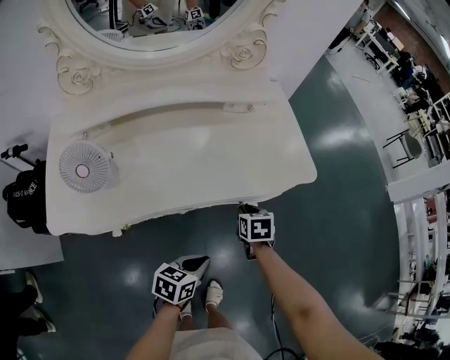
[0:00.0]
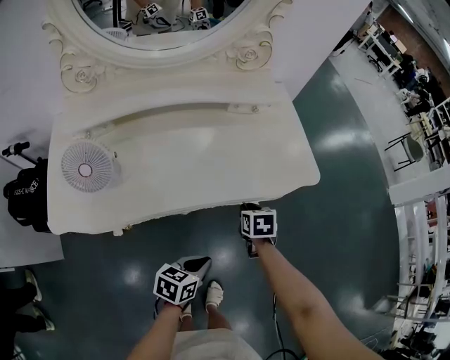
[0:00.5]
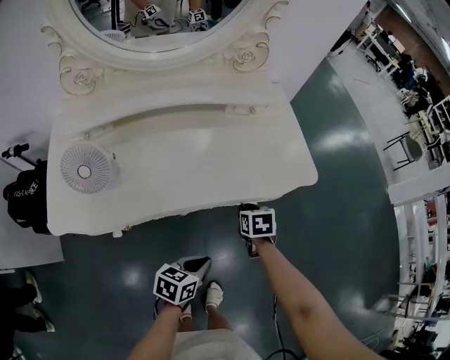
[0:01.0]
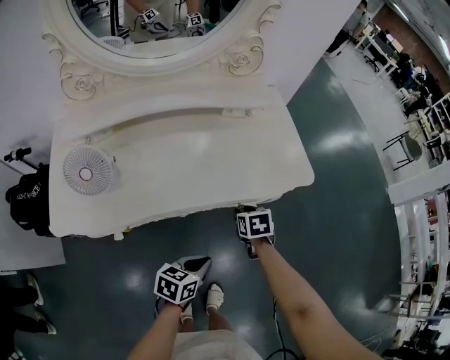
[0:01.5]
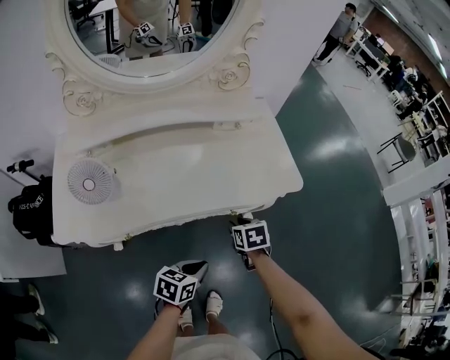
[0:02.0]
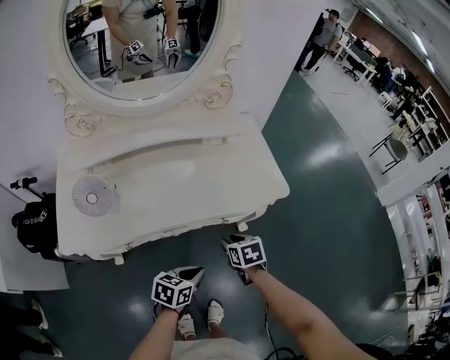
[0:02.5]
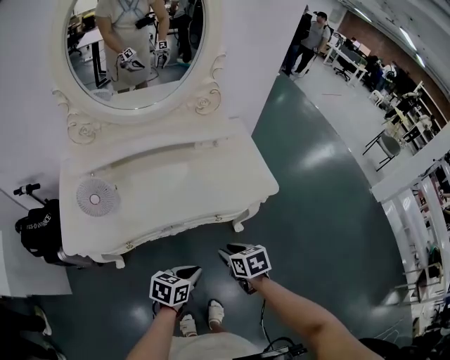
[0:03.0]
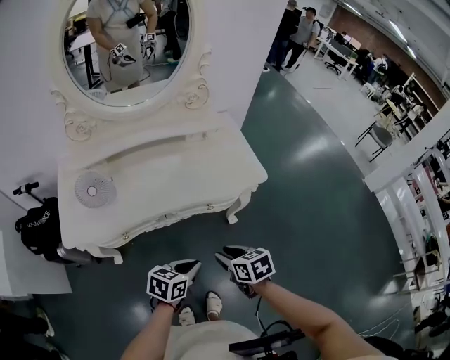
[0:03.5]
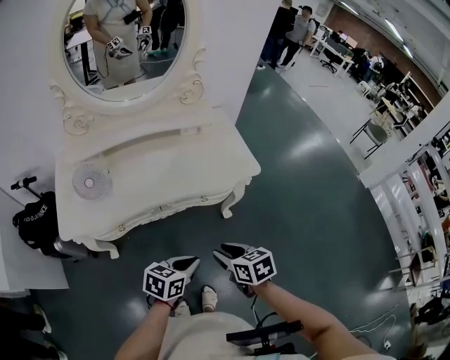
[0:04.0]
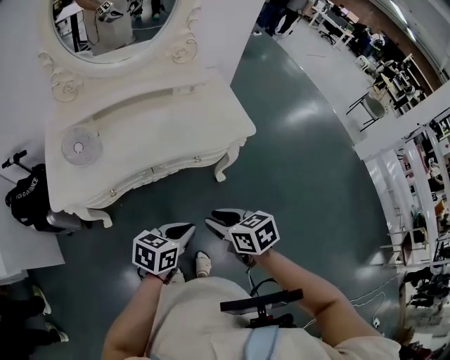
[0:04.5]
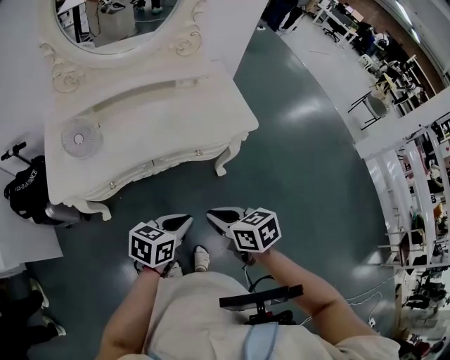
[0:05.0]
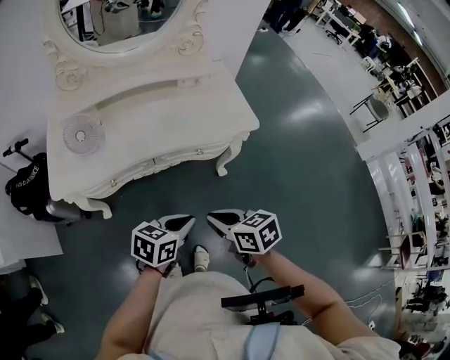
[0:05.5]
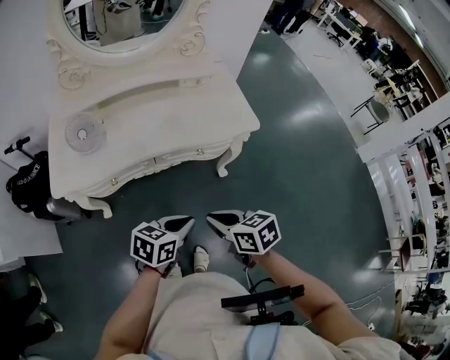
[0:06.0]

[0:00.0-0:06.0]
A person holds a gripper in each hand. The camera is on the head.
0:00.0 to 0:02.0: The grippers move only a little.
0:02.0 to 0:04.0: The right gripper heads backward and upward, covering some 25 cm, while the left gripper moves upward and backward, about 15 cm.
0:04.0 to 0:06.0: The right gripper shifts by some 5 cm, and closes its fingers.

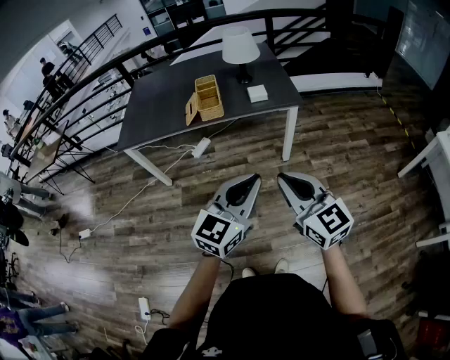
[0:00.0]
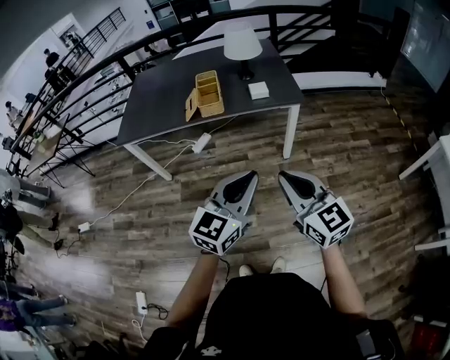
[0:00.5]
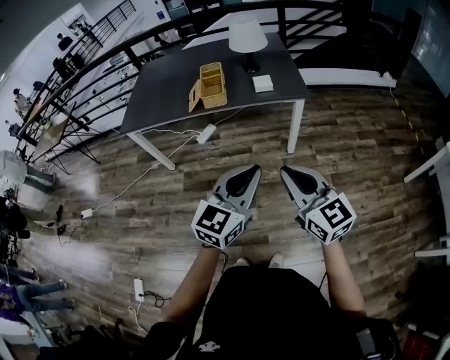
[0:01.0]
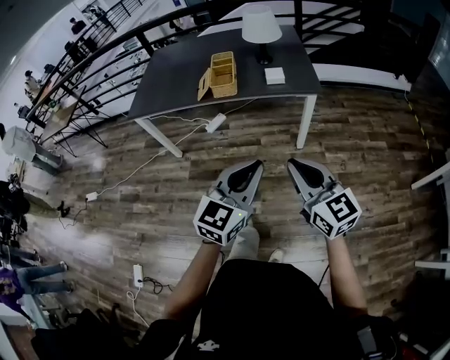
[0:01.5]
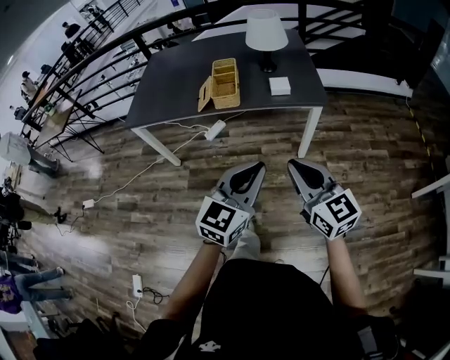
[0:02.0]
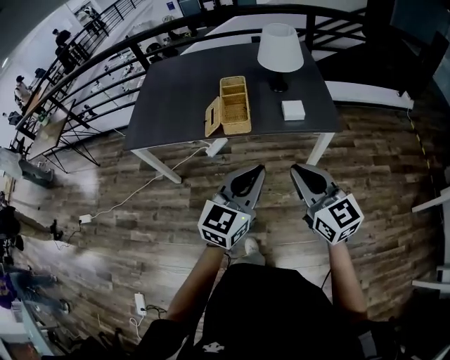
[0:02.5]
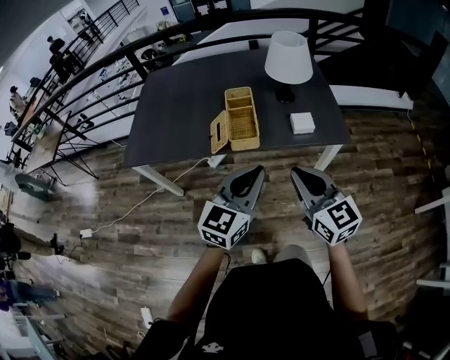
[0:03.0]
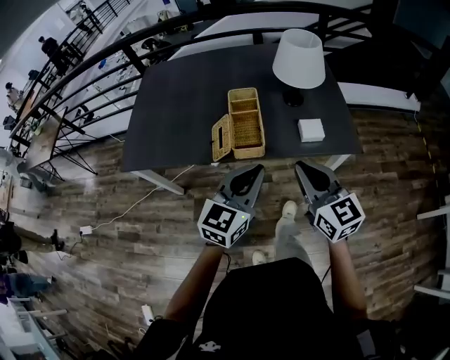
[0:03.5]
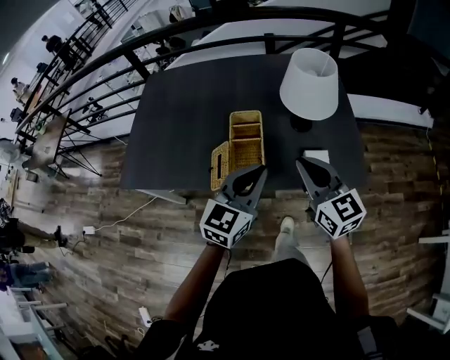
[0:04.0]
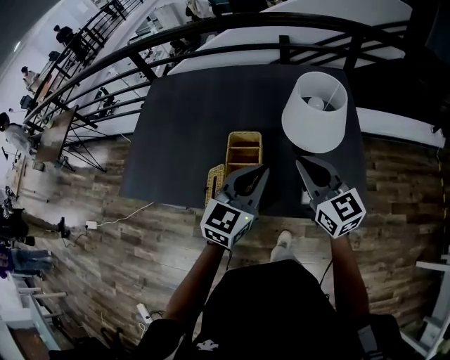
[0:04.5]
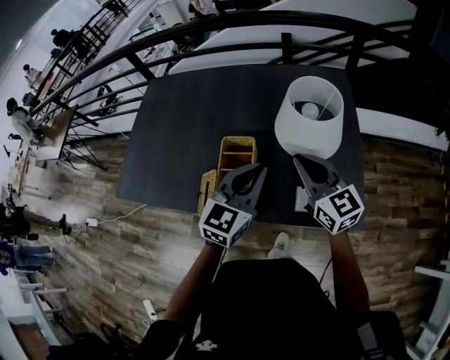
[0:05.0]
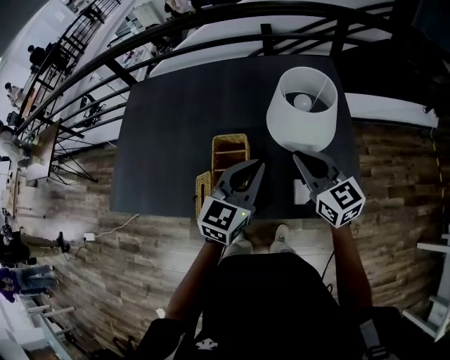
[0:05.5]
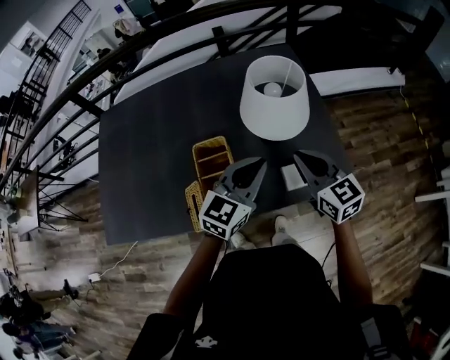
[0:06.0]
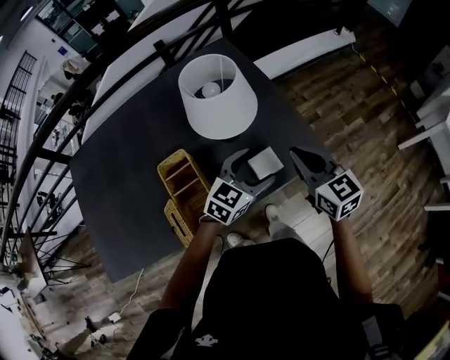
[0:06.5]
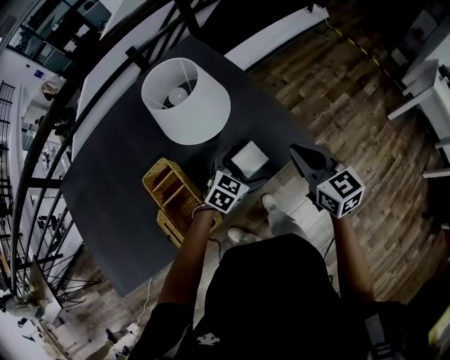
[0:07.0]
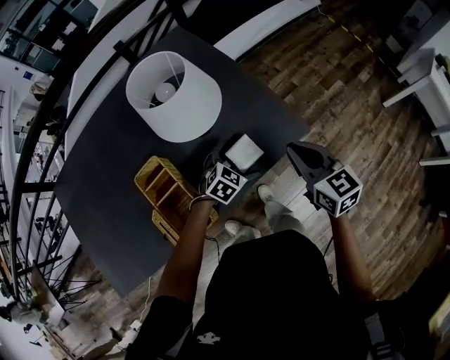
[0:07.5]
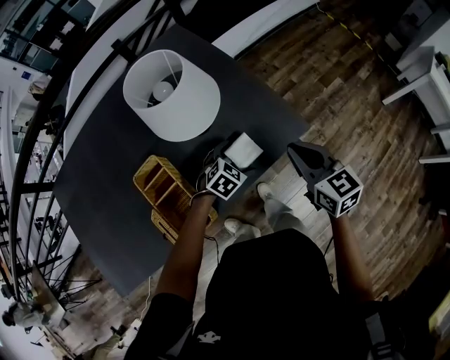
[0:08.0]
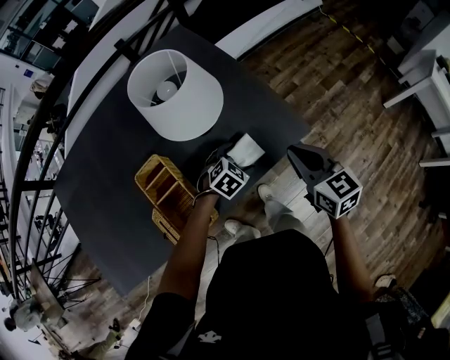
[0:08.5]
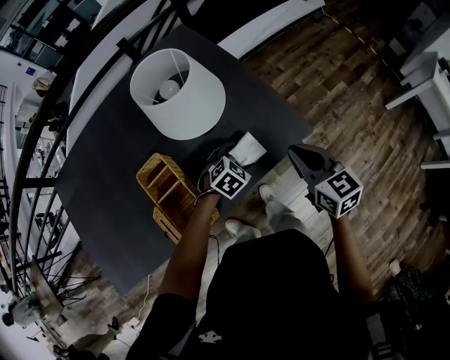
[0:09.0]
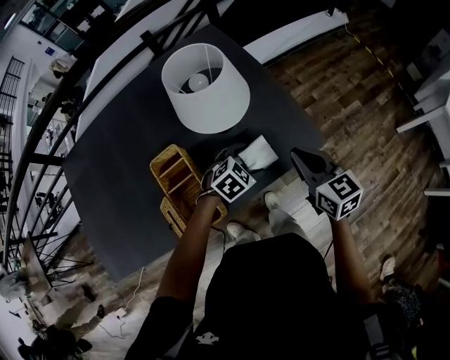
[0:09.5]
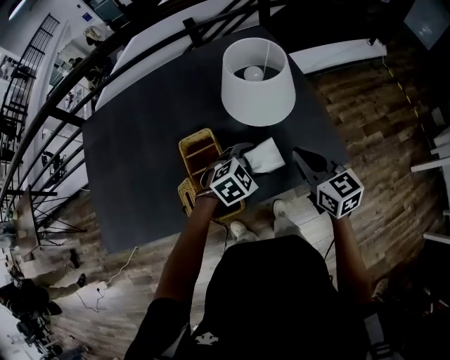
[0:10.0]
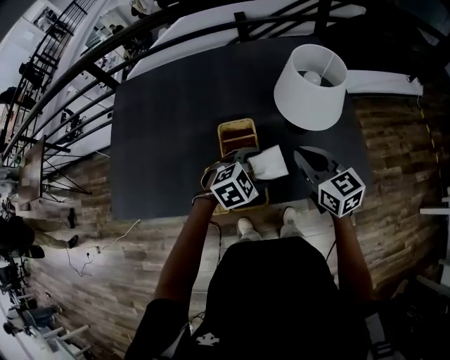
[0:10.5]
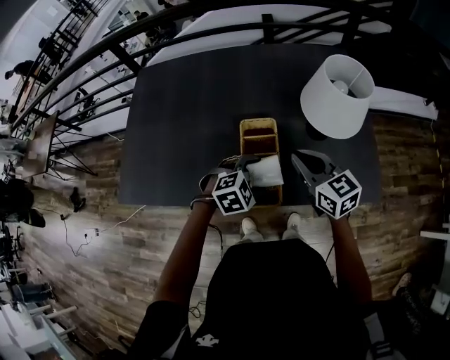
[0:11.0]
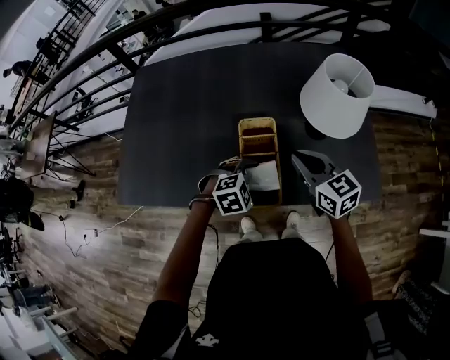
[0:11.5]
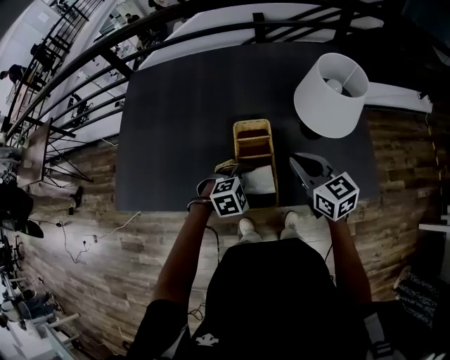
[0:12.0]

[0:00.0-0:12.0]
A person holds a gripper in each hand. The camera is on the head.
0:00.0 to 0:02.0: Both grippers move forward, some 10 cm.
0:02.0 to 0:04.0: The pair of grippers is taken forward, about 40 cm.
0:04.0 to 0:06.0: The two grippers go roughly 15 cm forward and to the right.
0:06.0 to 0:08.0: The left gripper moves downward, some 25 cm, angles its fingers downward, by approximately 40 degrees, and opens up, while the right gripper changes place by about 20 cm, and turns by roughly 30 degrees.
0:08.0 to 0:10.0: The right gripper travels to the left by roughly 10 cm, while the left gripper shifts approximately 15 cm upward and to the left.
0:10.0 to 0:12.0: The left gripper moves to the left and backward, roughly 20 cm. Meanwhile the right gripper shifts roughly 15 cm to the left.

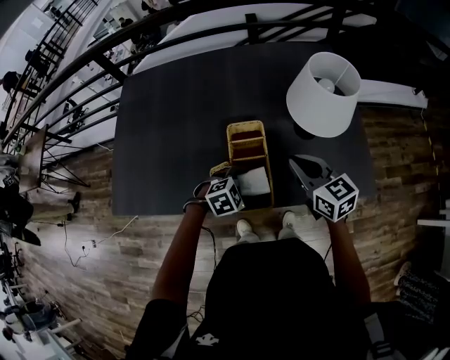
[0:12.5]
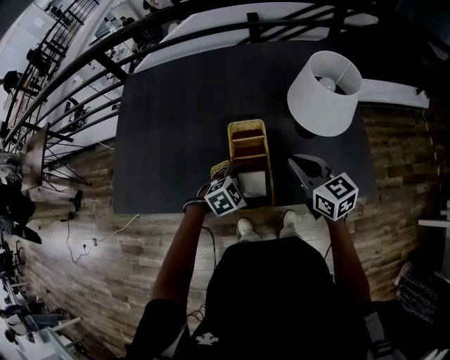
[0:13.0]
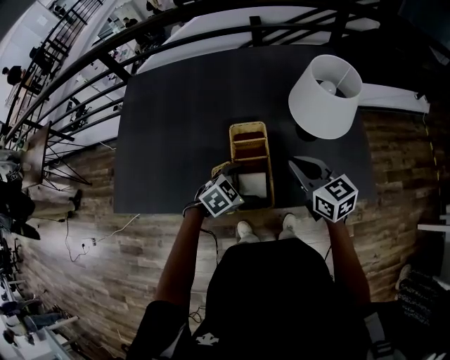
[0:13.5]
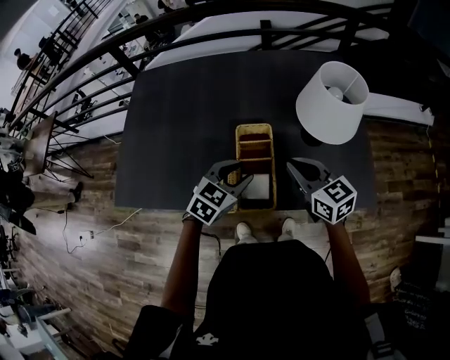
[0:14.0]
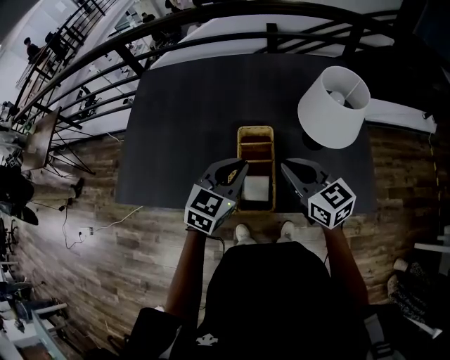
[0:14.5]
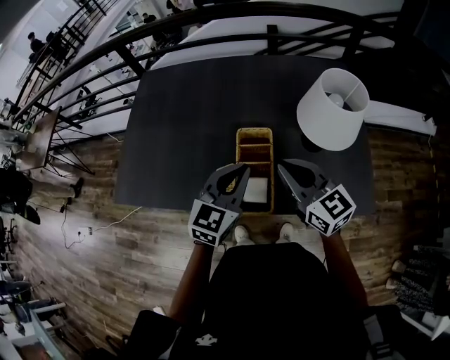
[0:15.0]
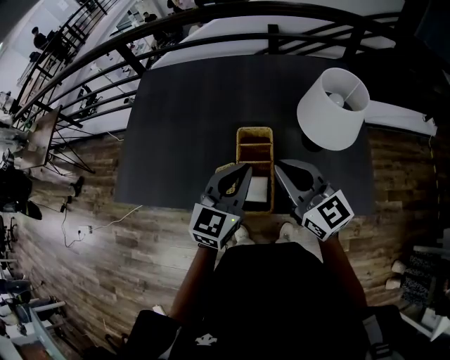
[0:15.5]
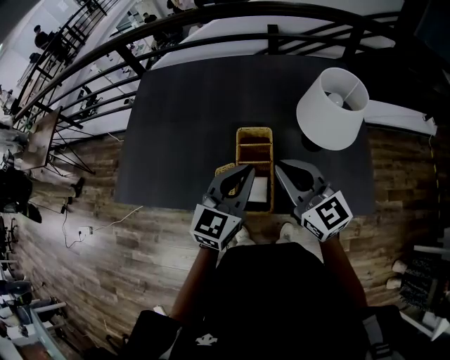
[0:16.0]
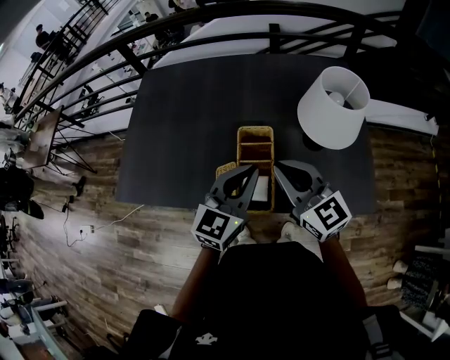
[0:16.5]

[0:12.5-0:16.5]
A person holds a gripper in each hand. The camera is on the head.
0:12.5 to 0:14.5: The left gripper heads upward, covering about 20 cm, points its fingers roughly 40 degrees further upward, and closes its fingers. The right gripper moves approximately 5 cm.
0:14.5 to 0:16.5: The left gripper moves some 5 cm; the right gripper goes some 5 cm upward.

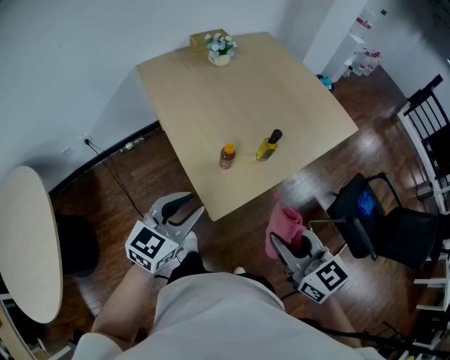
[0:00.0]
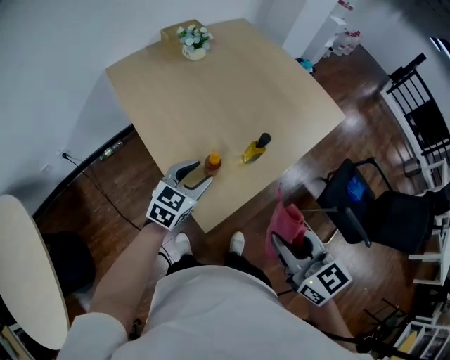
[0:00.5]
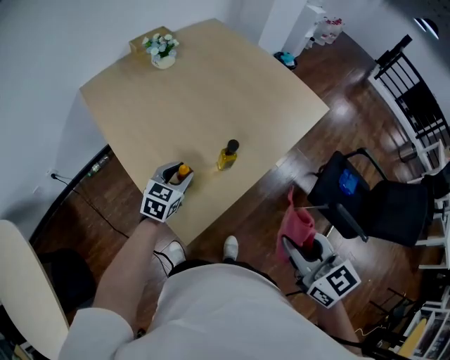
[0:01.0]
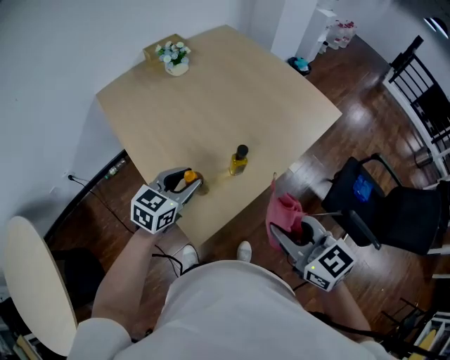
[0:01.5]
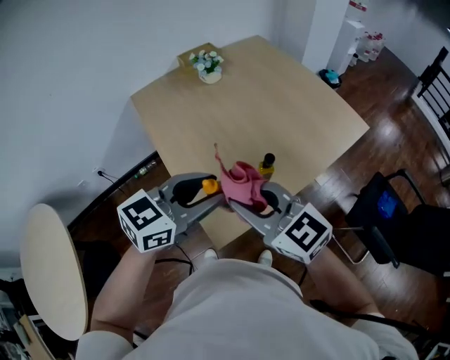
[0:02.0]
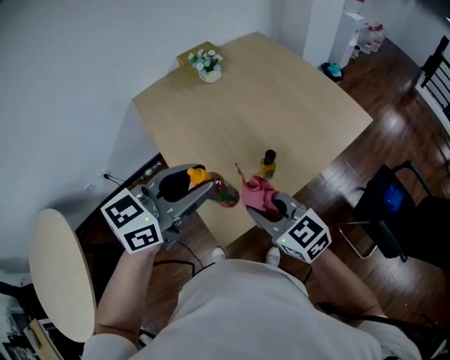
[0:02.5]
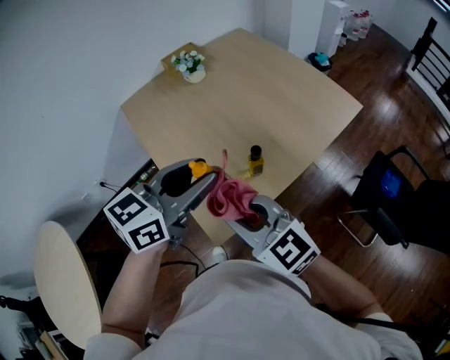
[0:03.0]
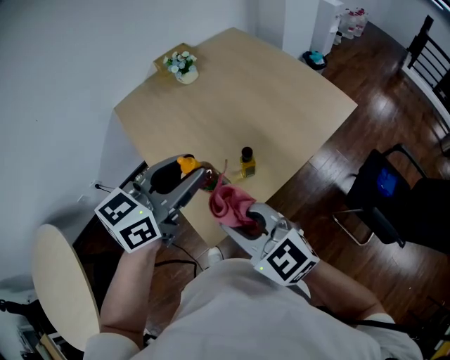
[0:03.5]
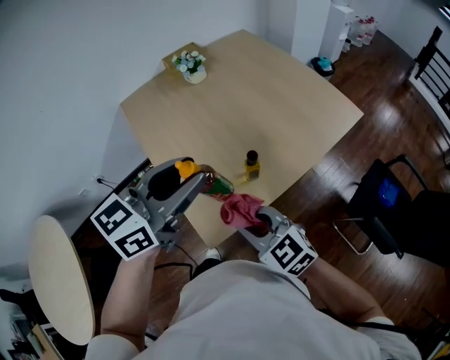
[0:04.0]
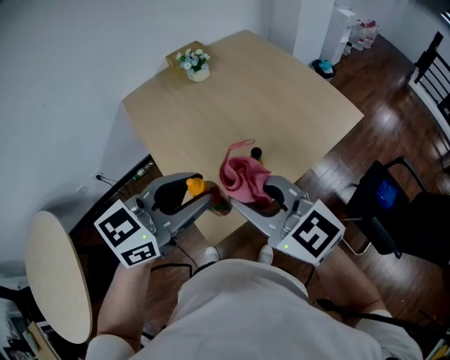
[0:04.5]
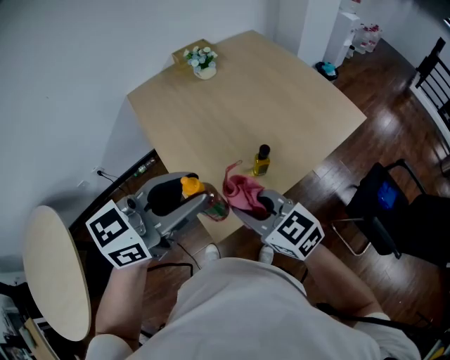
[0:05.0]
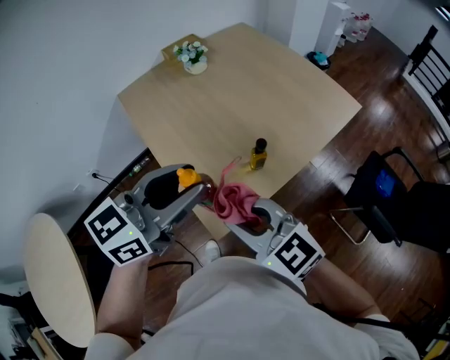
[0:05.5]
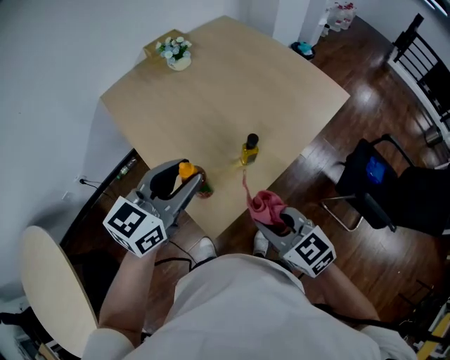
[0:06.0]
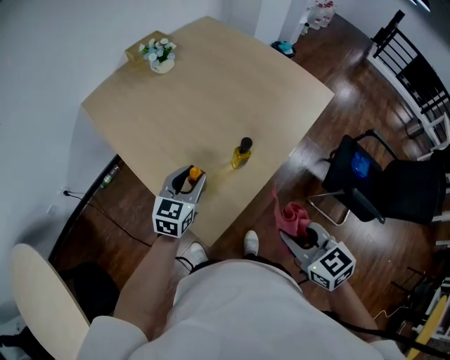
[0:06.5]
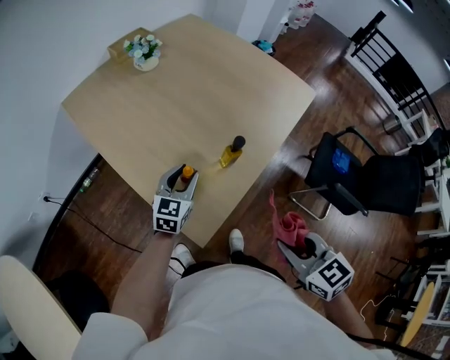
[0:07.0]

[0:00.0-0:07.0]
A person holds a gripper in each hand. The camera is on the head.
0:00.0 to 0:02.0: The left gripper shifts about 20 cm forward, upward and to the right. The right gripper shifts approximately 20 cm forward and to the left, and turns by approximately 20 degrees.
0:02.0 to 0:03.5: The right gripper travels downward and back again, some 10 cm each way. The left gripper ends up roughly 5 cm from where it was.
0:03.5 to 0:05.0: The left gripper goes approximately 5 cm backward; the right gripper swings up and down, approximately 15 cm each way, with 2 reversals.
0:05.0 to 0:07.0: The right gripper travels to the right and backward by roughly 15 cm, and swivels about 40 degrees; the left gripper moves downward and forward, roughly 30 cm.
